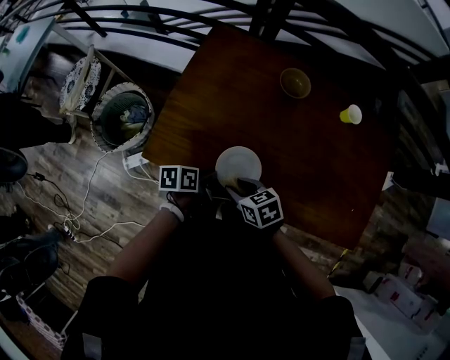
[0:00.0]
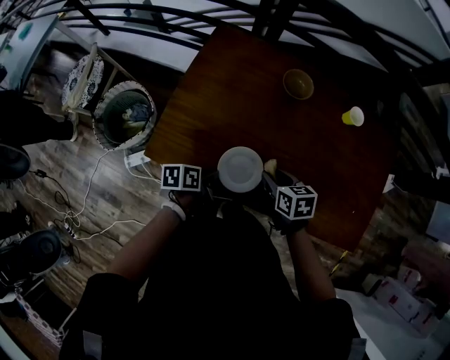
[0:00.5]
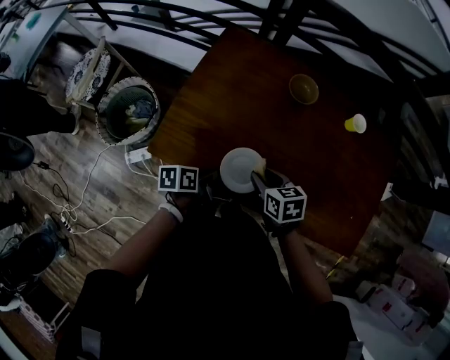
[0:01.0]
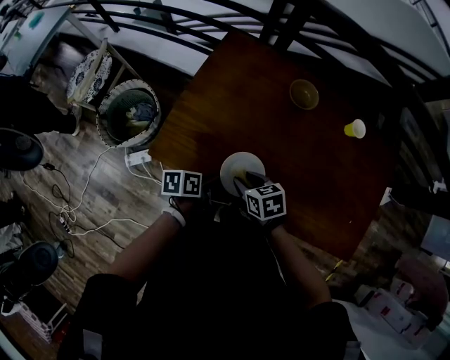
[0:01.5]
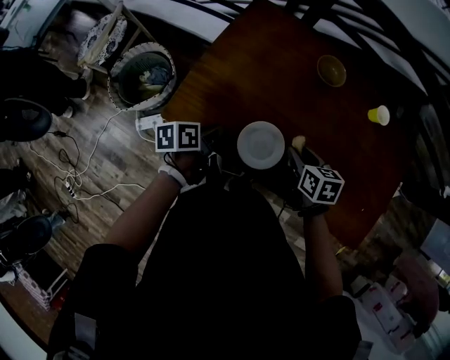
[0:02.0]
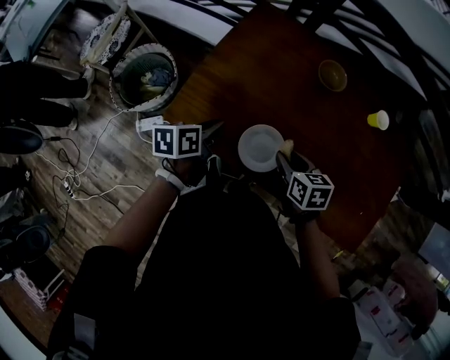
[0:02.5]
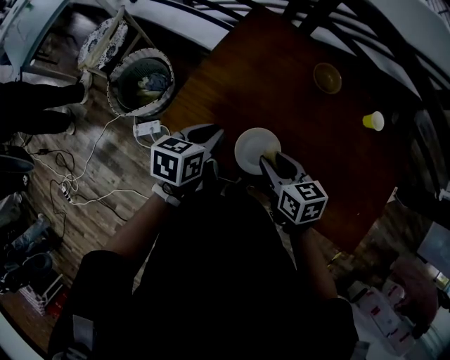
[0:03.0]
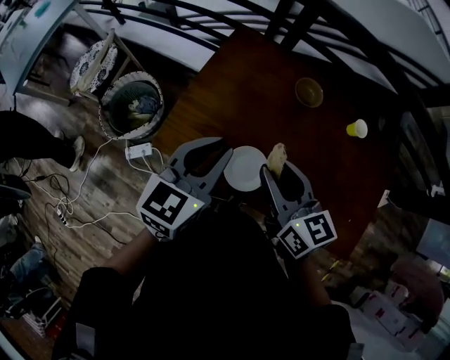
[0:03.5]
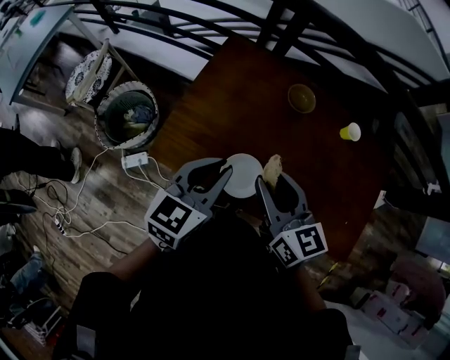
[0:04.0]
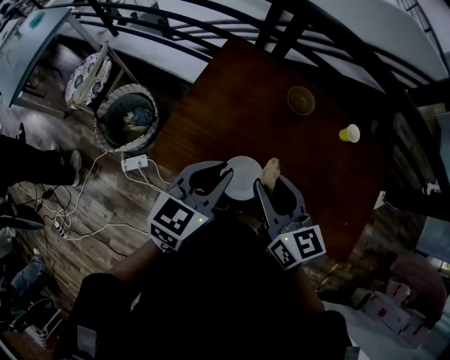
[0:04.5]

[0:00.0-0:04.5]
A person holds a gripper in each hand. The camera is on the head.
0:00.0 to 0:02.0: The right gripper goes left and right, about 10 cm each way, reversing 2 times, and changes its angle by some 20 degrees. The left gripper travels to the left by about 5 cm.
0:02.0 to 0:04.5: The two grippers go some 20 cm upward. The right gripper points its fingers approximately 30 degrees further upward, while the left gripper twists about 50 degrees clockwise, seen from behind.

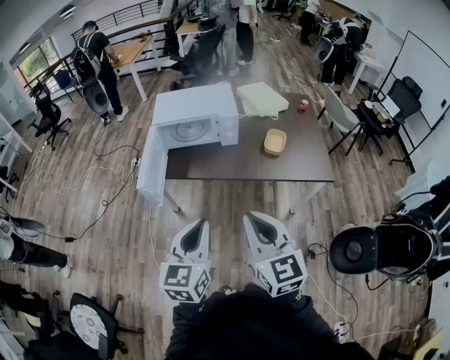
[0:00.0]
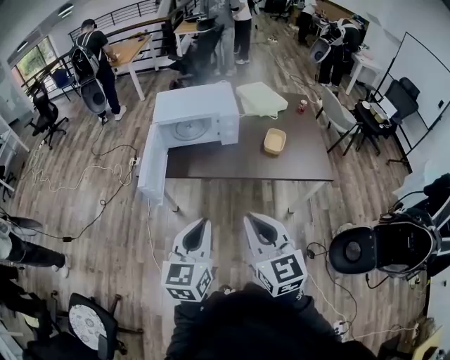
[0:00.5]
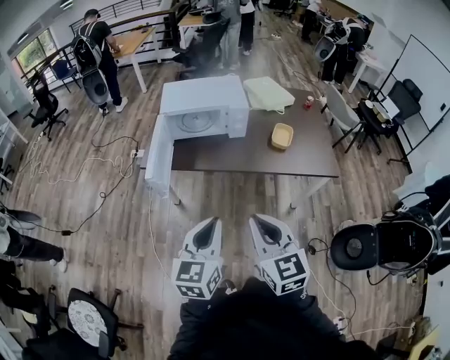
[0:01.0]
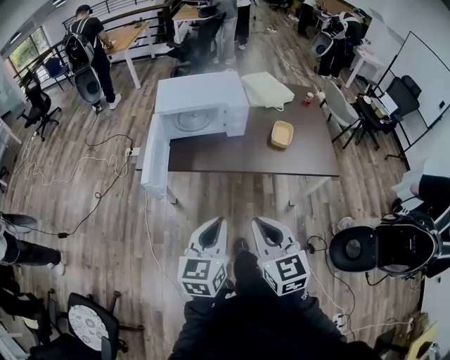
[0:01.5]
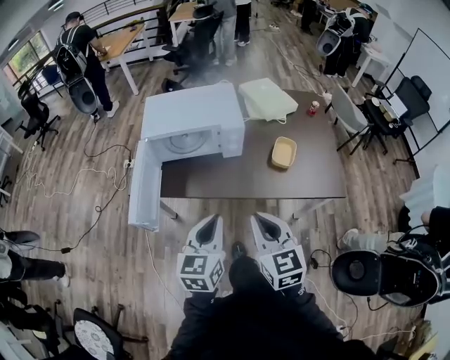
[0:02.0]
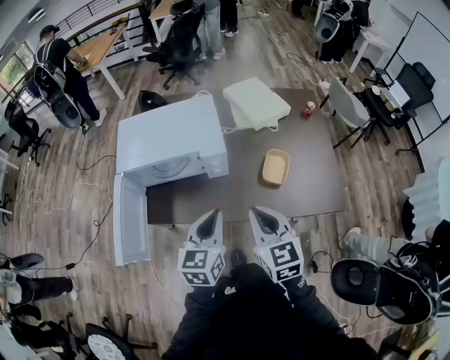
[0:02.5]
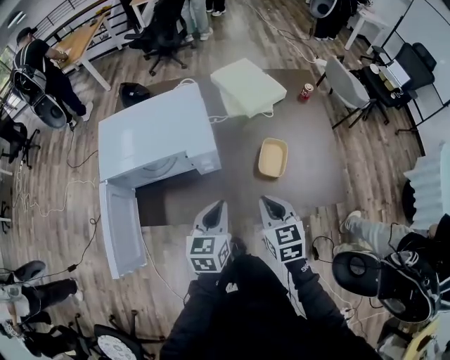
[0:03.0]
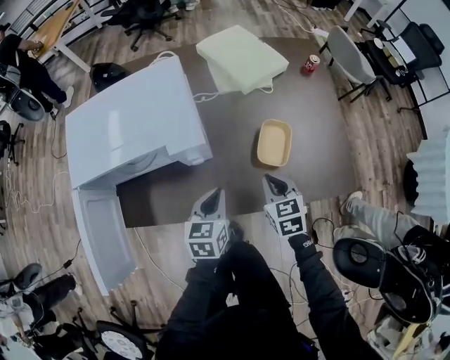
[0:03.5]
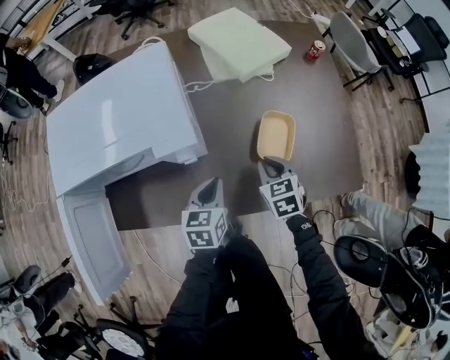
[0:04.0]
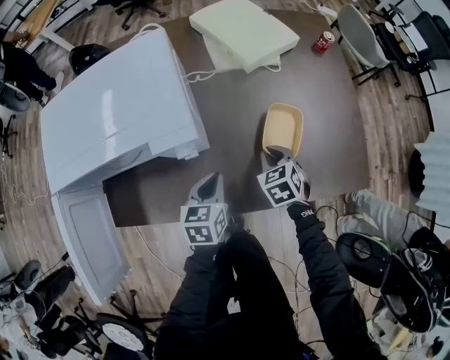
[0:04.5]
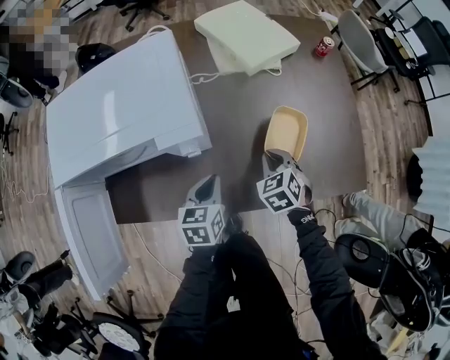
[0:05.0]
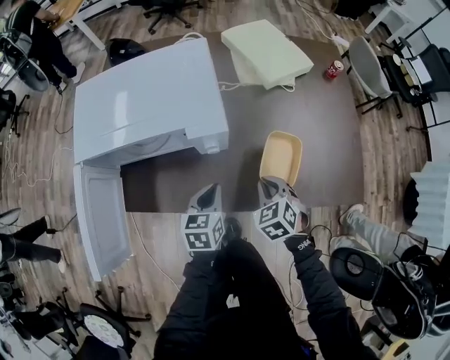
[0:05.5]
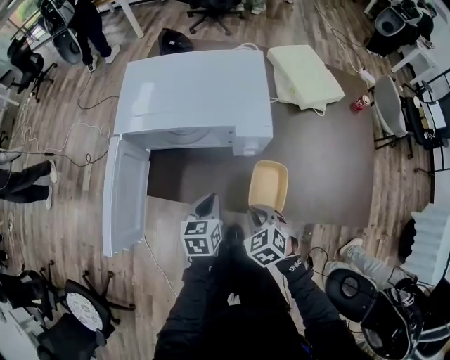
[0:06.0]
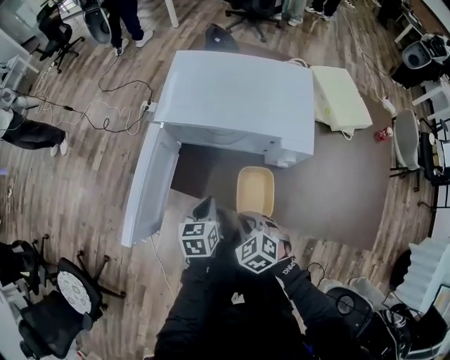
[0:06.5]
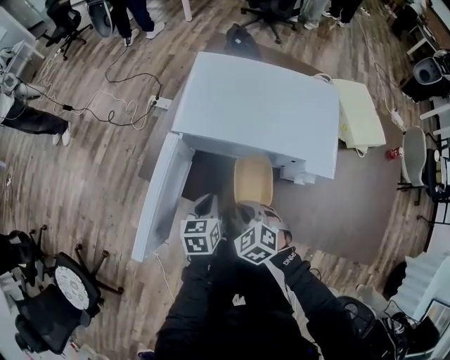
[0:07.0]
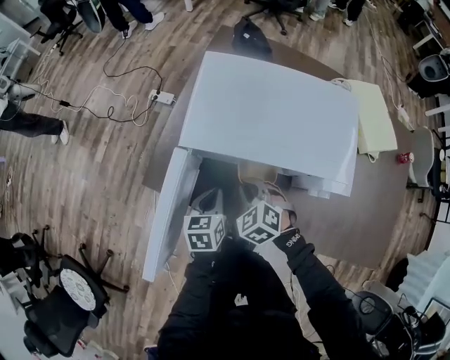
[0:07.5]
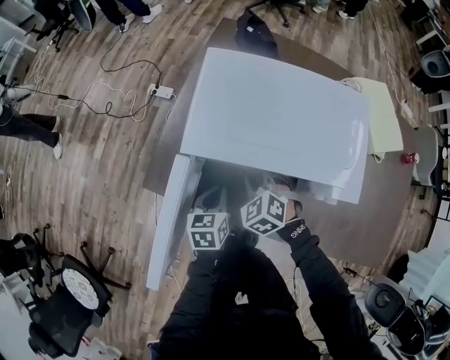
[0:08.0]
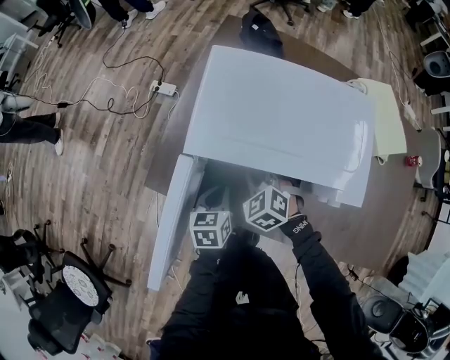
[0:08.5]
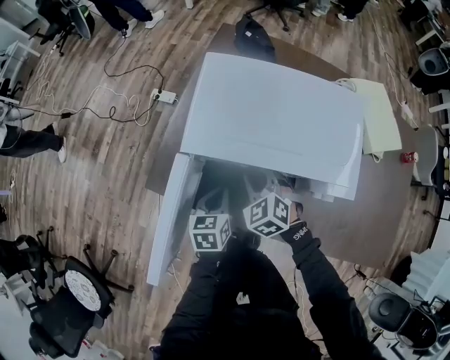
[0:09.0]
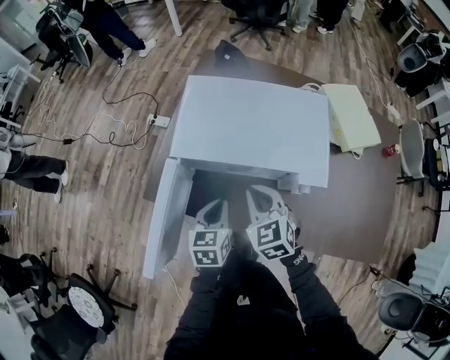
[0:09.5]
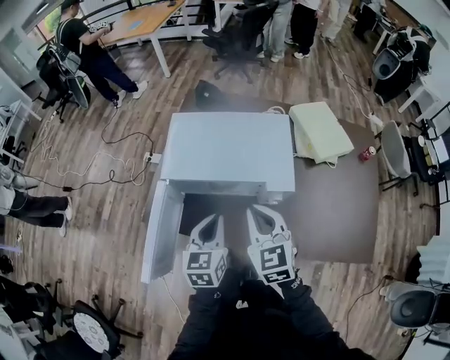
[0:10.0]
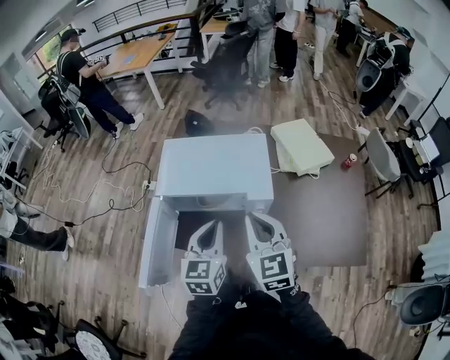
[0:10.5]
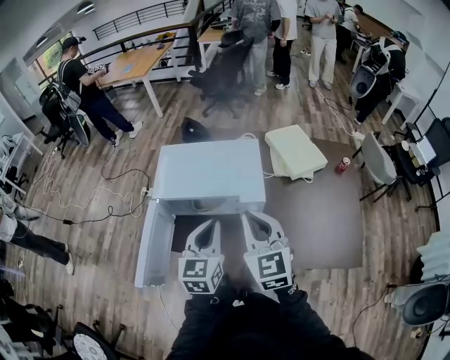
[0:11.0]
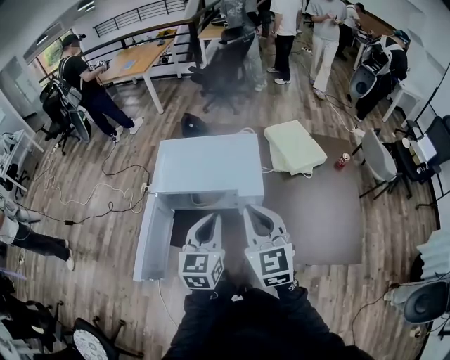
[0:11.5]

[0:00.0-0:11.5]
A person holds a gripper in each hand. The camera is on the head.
0:00.0 to 0:02.0: The grippers both shift forward and downward by approximately 20 cm.
0:02.0 to 0:04.0: The left gripper heads forward and downward, covering roughly 40 cm, and changes its angle by about 20 degrees; the right gripper shifts approximately 50 cm forward, downward and to the right, and tilts its fingers some 30 degrees downward.
0:04.0 to 0:06.0: The two grippers go approximately 20 cm to the left and backward. The right gripper swivels about 30 degrees.
0:06.0 to 0:07.5: The right gripper travels forward and to the left by some 30 cm, and changes its angle by some 20 degrees. The left gripper is displaced to the left and forward by approximately 20 cm.
0:07.5 to 0:09.5: The right gripper shifts roughly 15 cm upward and to the right, and rotates some 30 degrees, while the left gripper moves upward, some 10 cm.
0:09.5 to 0:11.5: The left gripper moves upward and to the right, about 25 cm, and swivels approximately 30 degrees; the right gripper heads upward, to the right and backward, covering about 30 cm, and turns by approximately 30 degrees.

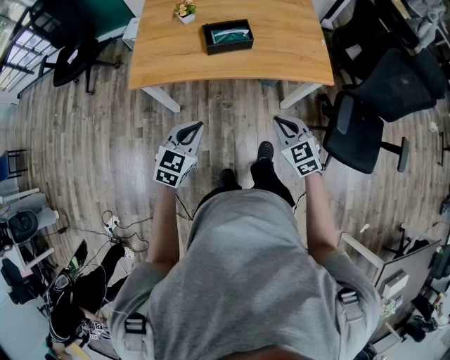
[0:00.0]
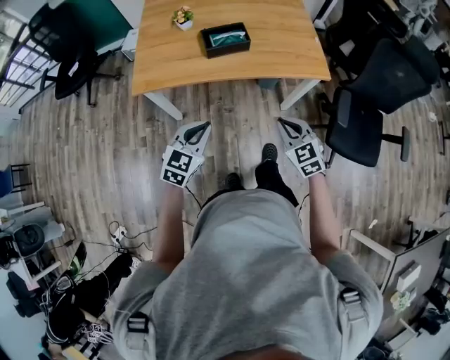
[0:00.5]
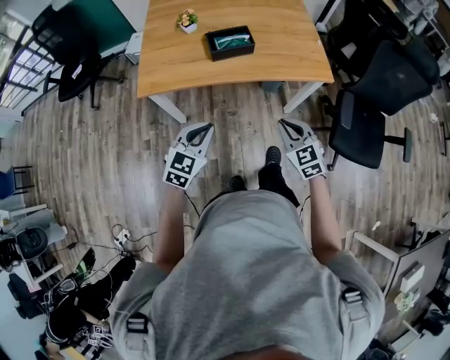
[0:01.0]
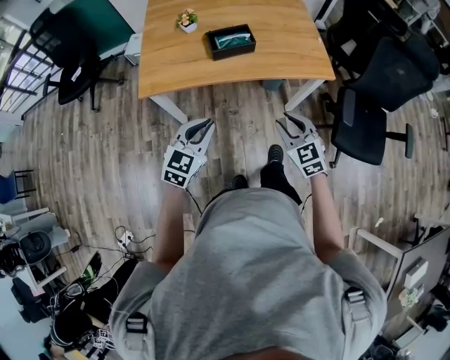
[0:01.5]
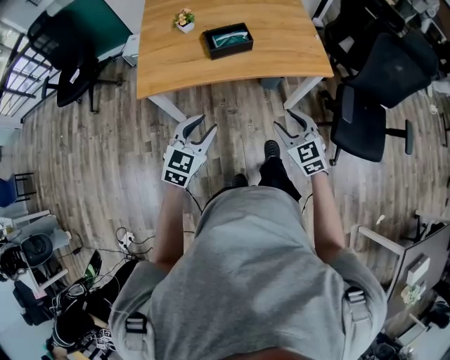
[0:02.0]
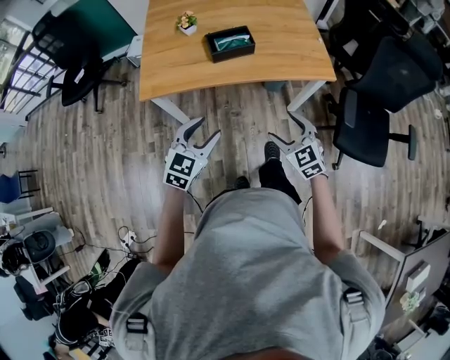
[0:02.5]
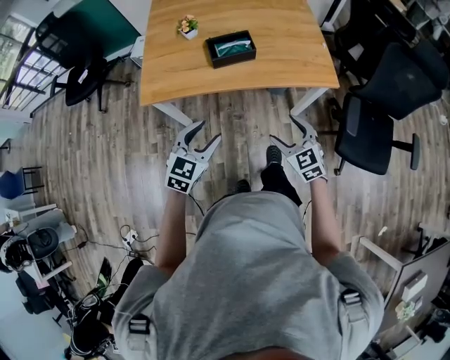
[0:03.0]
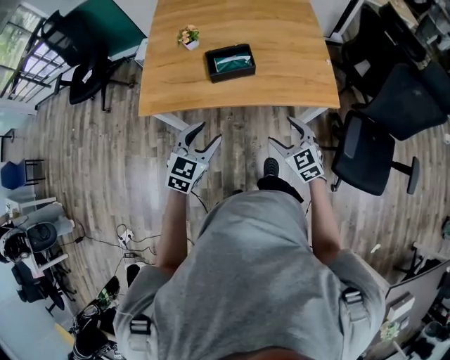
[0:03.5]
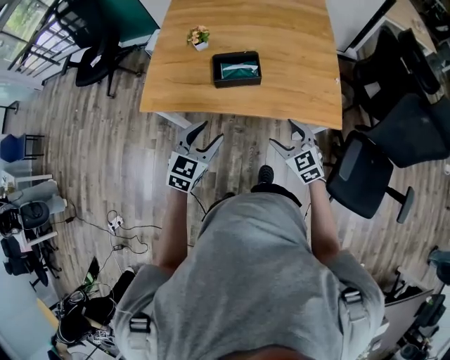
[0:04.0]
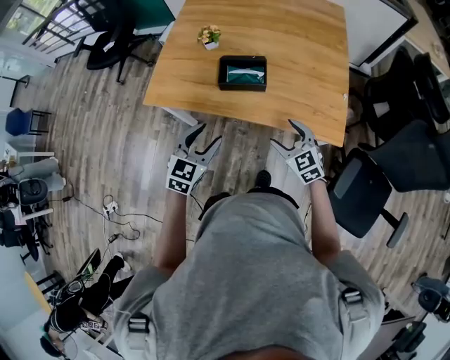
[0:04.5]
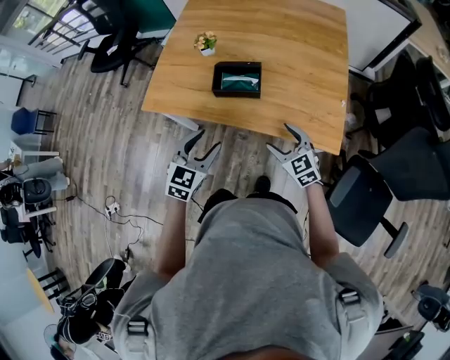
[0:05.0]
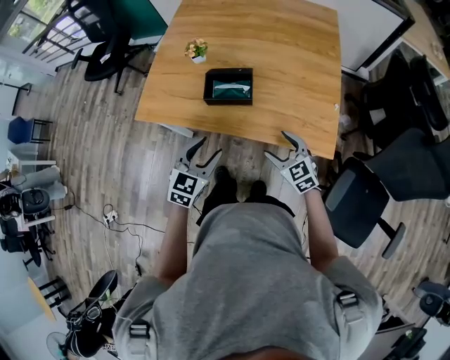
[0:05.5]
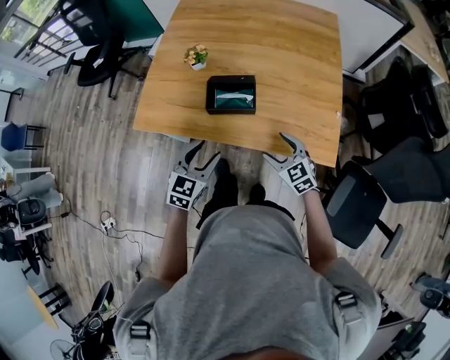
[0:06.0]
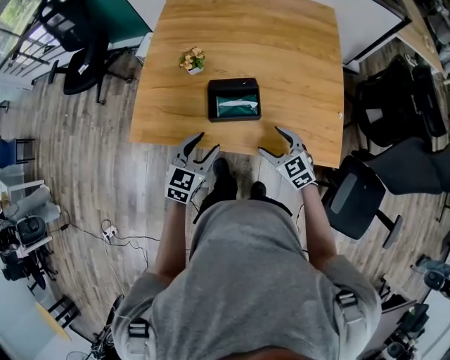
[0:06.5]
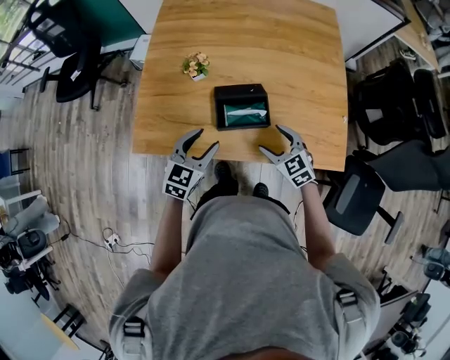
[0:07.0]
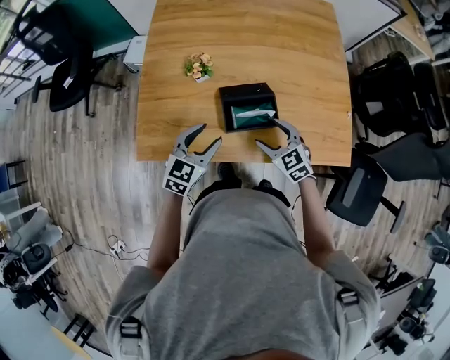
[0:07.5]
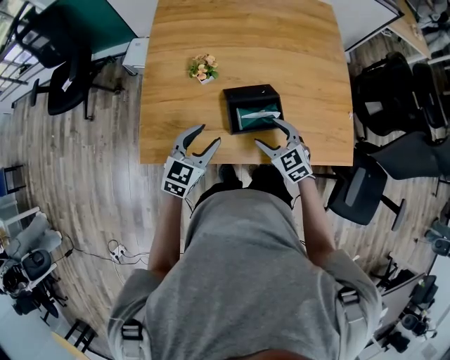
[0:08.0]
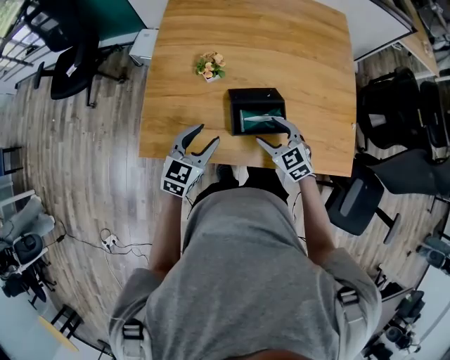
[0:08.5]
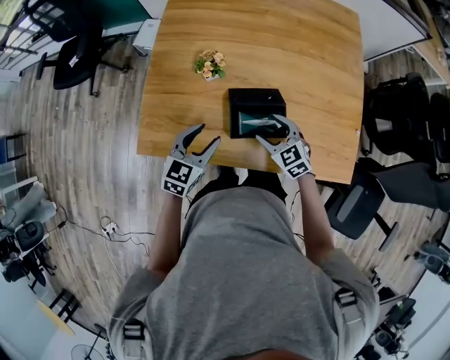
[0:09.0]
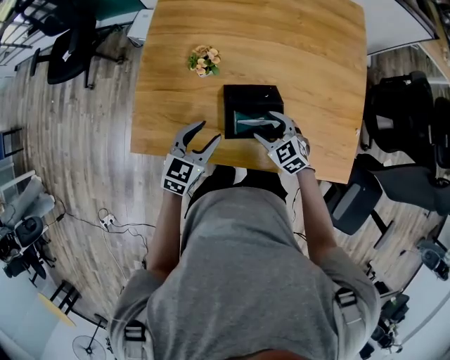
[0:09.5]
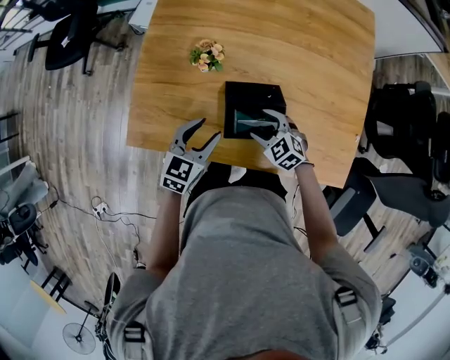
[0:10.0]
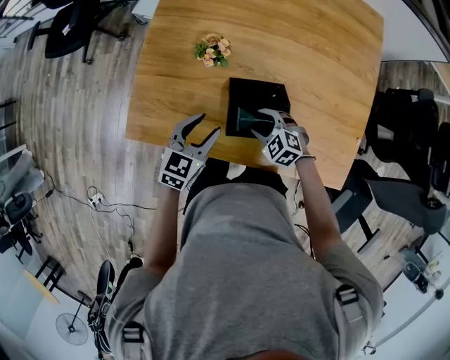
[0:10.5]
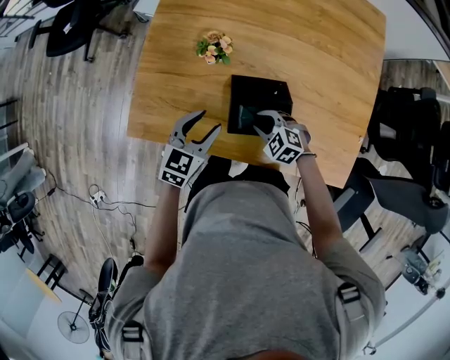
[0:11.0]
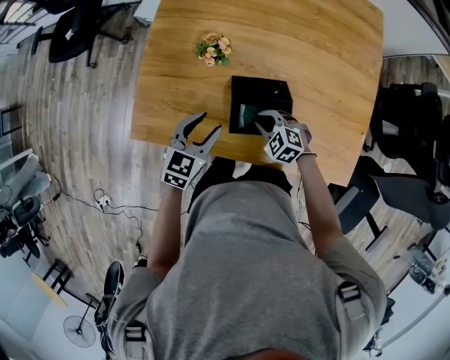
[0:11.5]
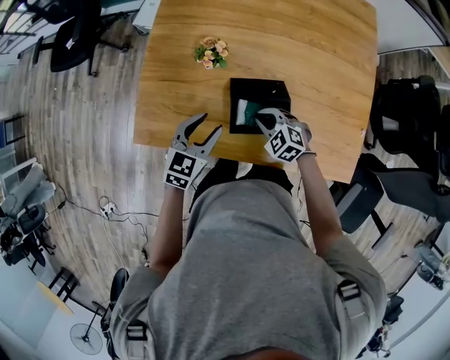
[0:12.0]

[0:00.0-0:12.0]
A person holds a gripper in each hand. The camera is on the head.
0:00.0 to 0:02.0: The left gripper opens up, while the right gripper opens its fingers.
0:02.0 to 0:04.0: The right gripper is displaced forward by roughly 20 cm, and opens its fingers, while the left gripper goes about 15 cm forward and to the right.
0:04.0 to 0:06.0: Both grippers move forward, about 10 cm.
0:06.0 to 0:08.0: The right gripper moves to the left and forward, approximately 20 cm; the left gripper moves forward and to the left, roughly 25 cm.
0:08.0 to 0:10.0: The left gripper shifts roughly 5 cm forward and downward. The right gripper moves downward and forward, roughly 10 cm, and turns by roughly 20 degrees.
0:10.0 to 0:12.0: The right gripper closes up.
